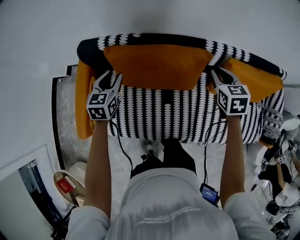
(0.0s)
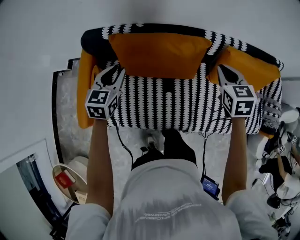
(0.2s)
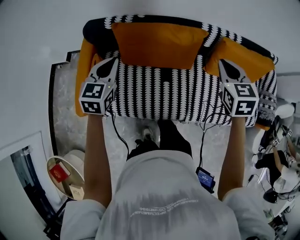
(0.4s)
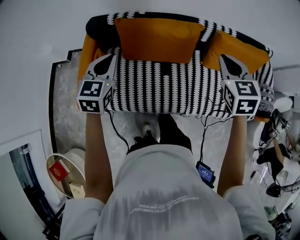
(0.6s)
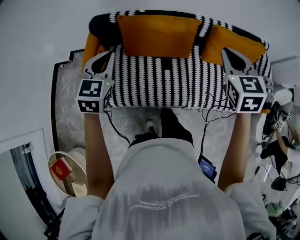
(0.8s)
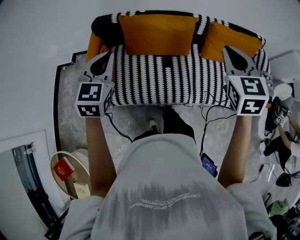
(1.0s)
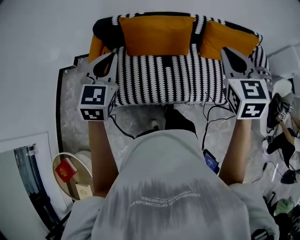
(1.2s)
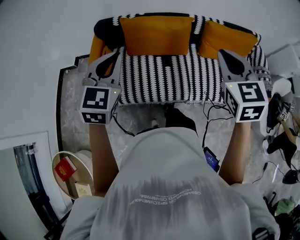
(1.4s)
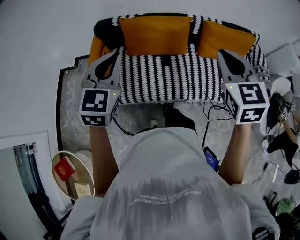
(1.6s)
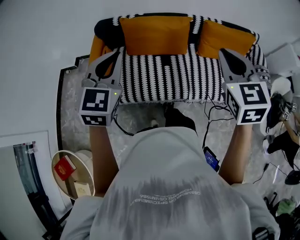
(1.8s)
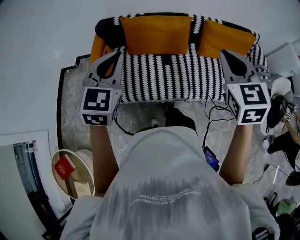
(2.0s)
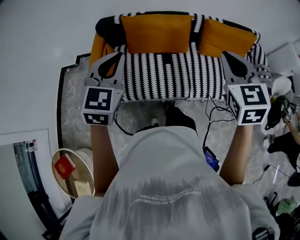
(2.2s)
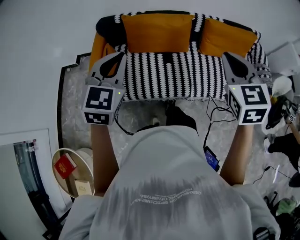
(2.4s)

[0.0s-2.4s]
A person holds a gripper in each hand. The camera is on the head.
0.0s to 1.2s: Both grippers travel together backward and upward, approximately 40 cm. The right gripper turns by approximately 30 degrees. The left gripper turns by some 30 degrees, and closes its fingers.
1.2s to 2.4s: Both grippers travel together backward, roughly 5 cm.

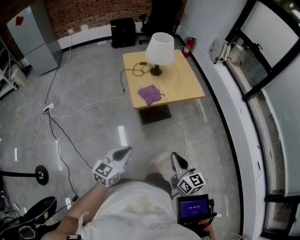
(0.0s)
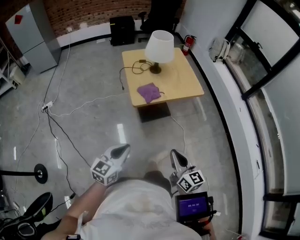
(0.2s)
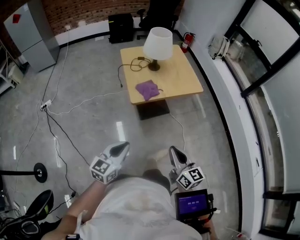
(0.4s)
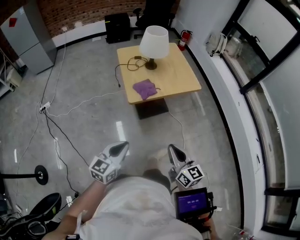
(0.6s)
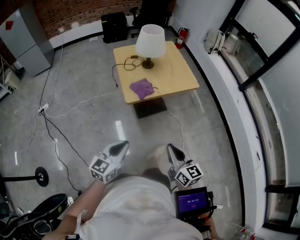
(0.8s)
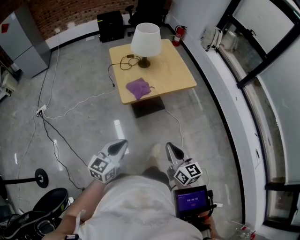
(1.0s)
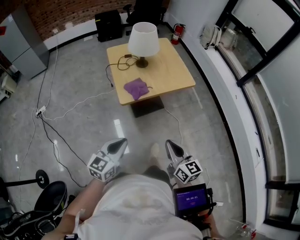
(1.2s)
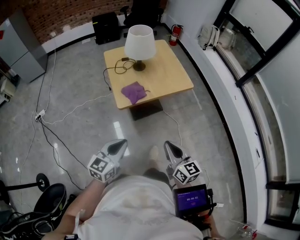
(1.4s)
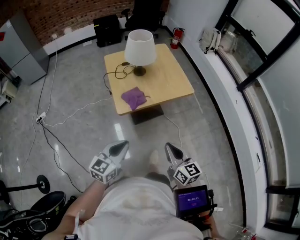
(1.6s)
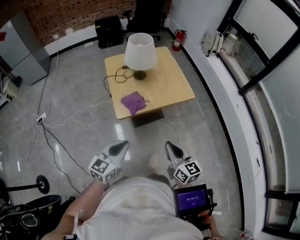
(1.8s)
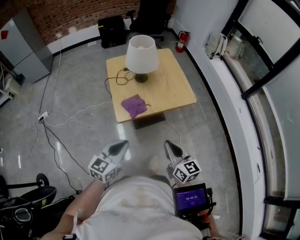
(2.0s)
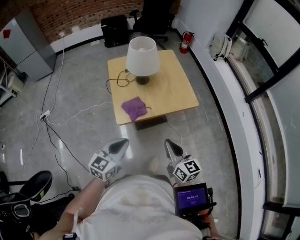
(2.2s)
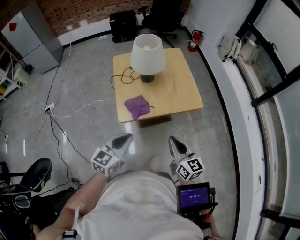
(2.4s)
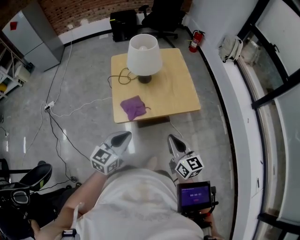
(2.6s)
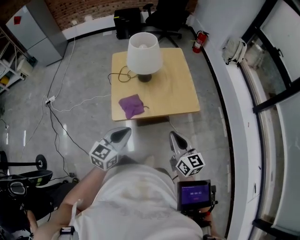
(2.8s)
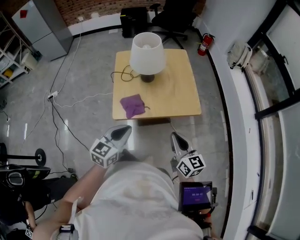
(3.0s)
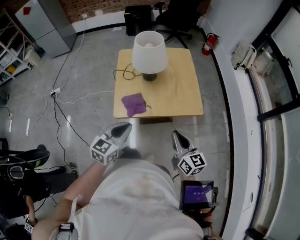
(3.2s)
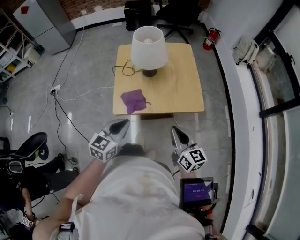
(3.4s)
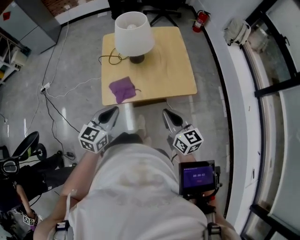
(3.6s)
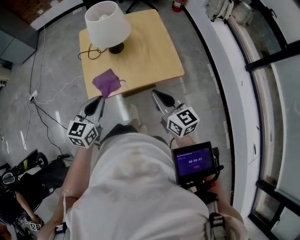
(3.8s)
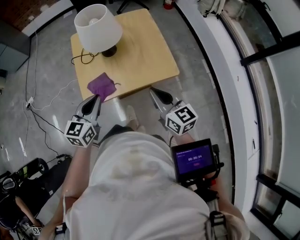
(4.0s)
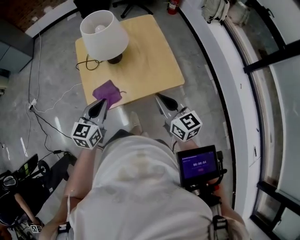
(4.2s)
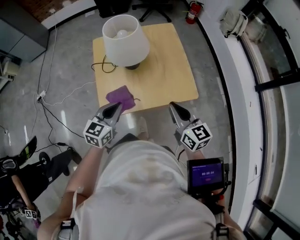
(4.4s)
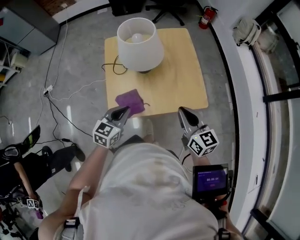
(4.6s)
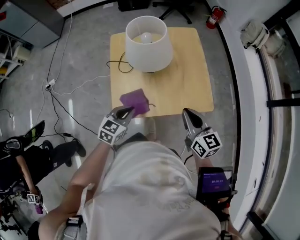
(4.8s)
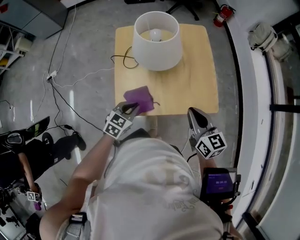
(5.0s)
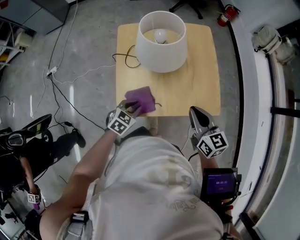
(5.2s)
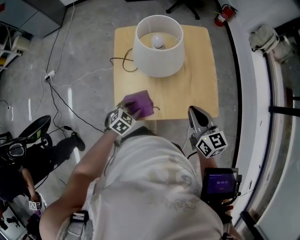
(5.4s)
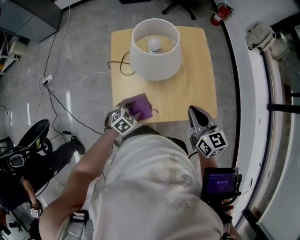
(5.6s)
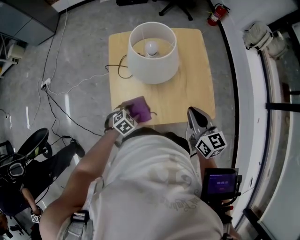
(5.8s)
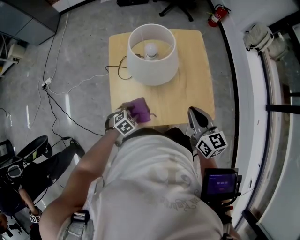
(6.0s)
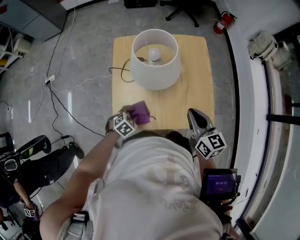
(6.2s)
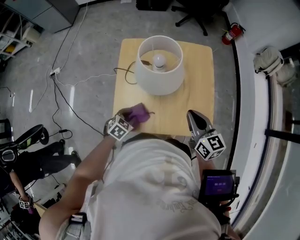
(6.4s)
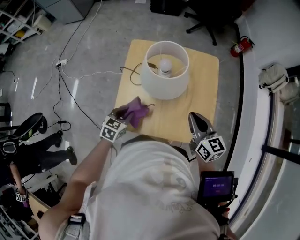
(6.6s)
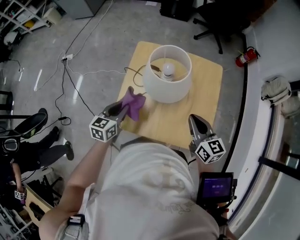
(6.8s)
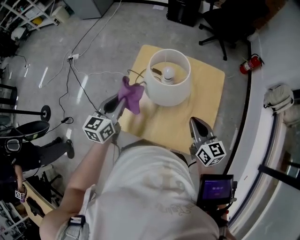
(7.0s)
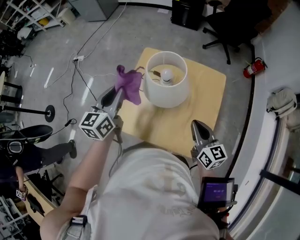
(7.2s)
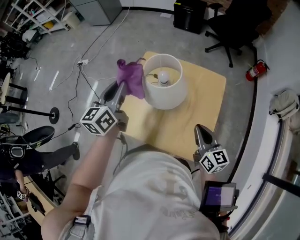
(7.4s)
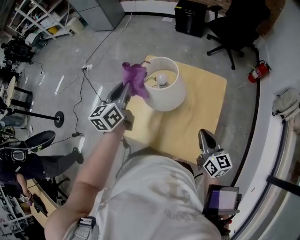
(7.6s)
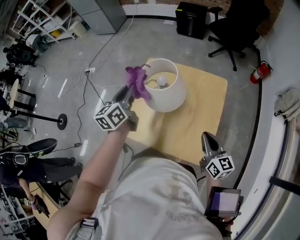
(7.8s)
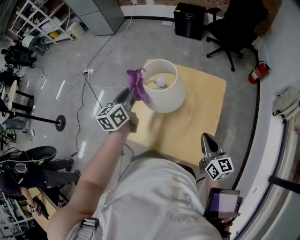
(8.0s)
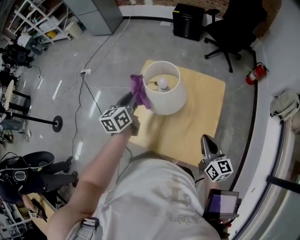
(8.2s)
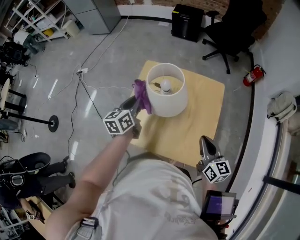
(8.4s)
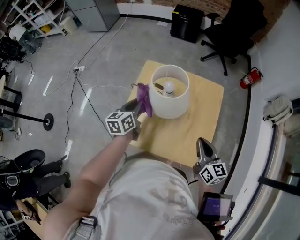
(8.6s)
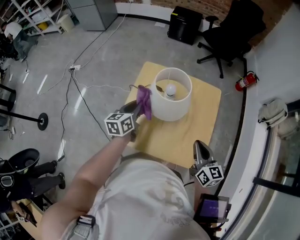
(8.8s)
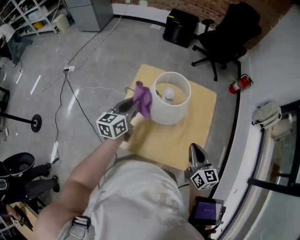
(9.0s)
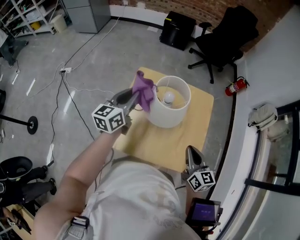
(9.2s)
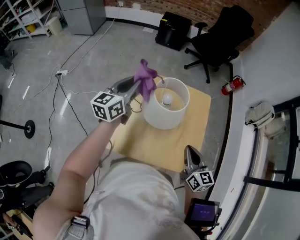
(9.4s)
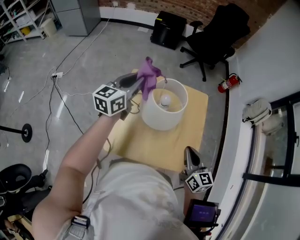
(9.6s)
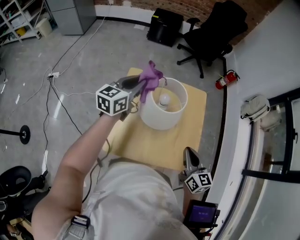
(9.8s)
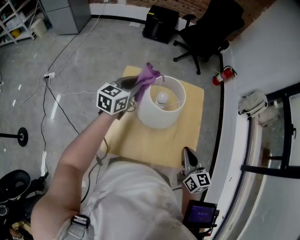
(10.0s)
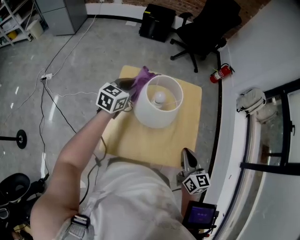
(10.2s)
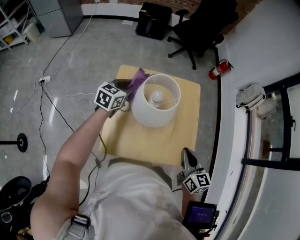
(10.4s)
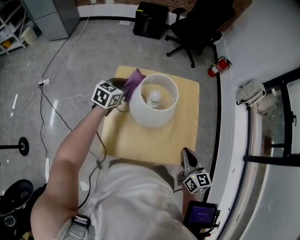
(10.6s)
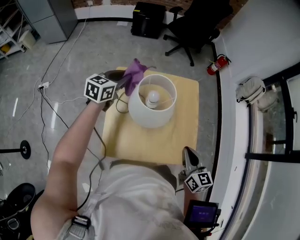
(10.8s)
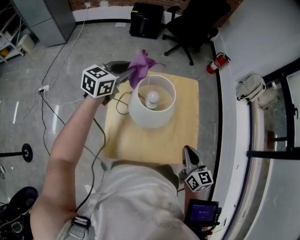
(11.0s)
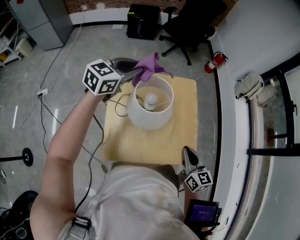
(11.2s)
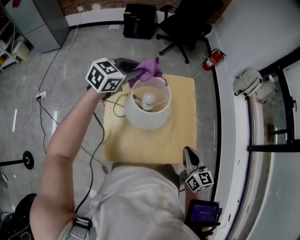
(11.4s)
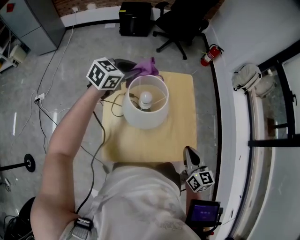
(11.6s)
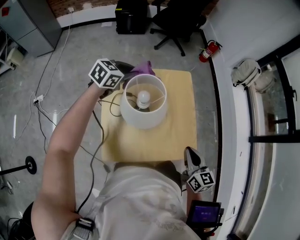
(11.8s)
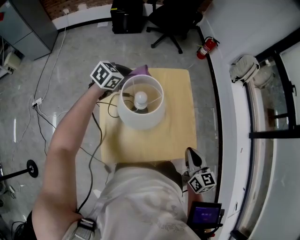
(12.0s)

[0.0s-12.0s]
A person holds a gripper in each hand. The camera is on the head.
0.0s to 1.6s: The left gripper goes some 10 cm forward and to the right. The right gripper is displaced forward by roughly 10 cm.
1.6s to 3.0s: The grippers both shift forward and to the right by some 20 cm.
3.0s to 4.4s: The left gripper heads forward and downward, covering roughly 15 cm; the right gripper shifts about 10 cm forward.
4.4s to 6.0s: The right gripper travels forward by some 10 cm. Meanwhile the left gripper travels downward by roughly 20 cm, points its fingers some 40 degrees further downward, and opens its fingers.
6.0s to 7.6s: The right gripper moves approximately 10 cm, and rotates some 20 degrees; the left gripper goes about 35 cm upward, and tilts its fingers some 50 degrees upward.
7.6s to 9.0s: The right gripper goes about 5 cm to the left, while the left gripper moves downward, roughly 10 cm.
9.0s to 10.4s: The left gripper shifts approximately 10 cm forward, moves roughly 10 cm upward and comes back, and swivels some 30 degrees.
10.4s to 12.0s: The left gripper is displaced forward and to the right by roughly 10 cm, travels upward and back again, approximately 15 cm each way, and swivels roughly 30 degrees.

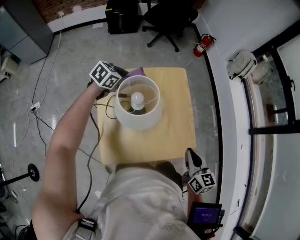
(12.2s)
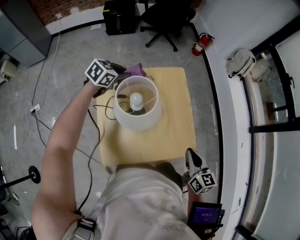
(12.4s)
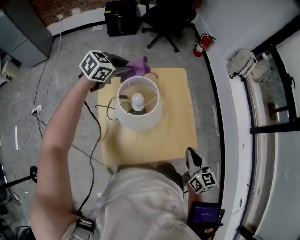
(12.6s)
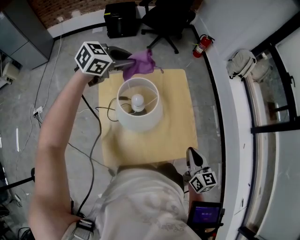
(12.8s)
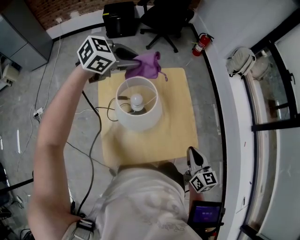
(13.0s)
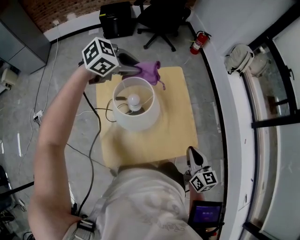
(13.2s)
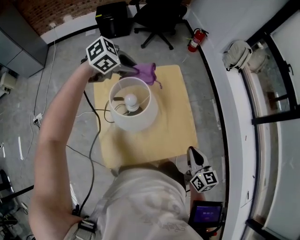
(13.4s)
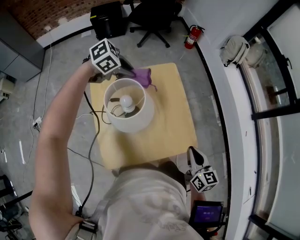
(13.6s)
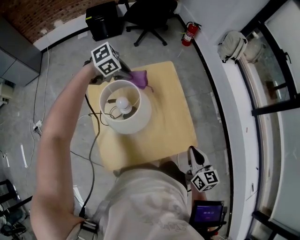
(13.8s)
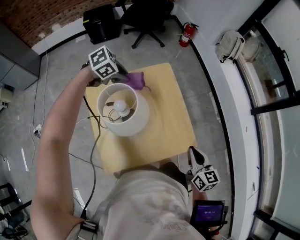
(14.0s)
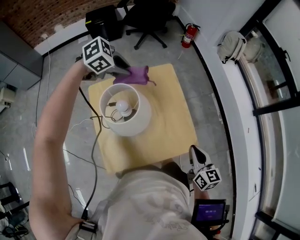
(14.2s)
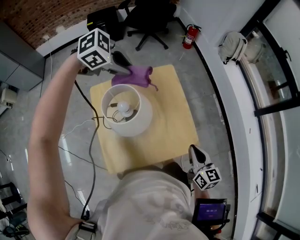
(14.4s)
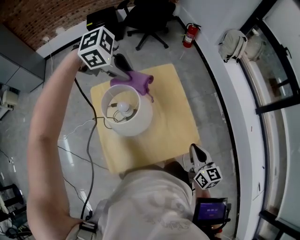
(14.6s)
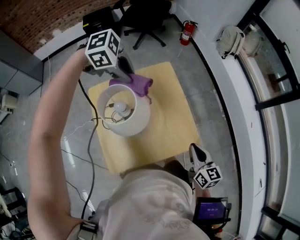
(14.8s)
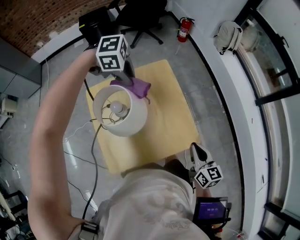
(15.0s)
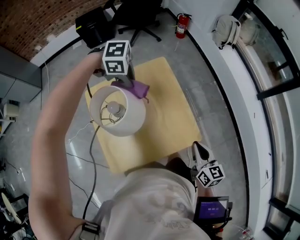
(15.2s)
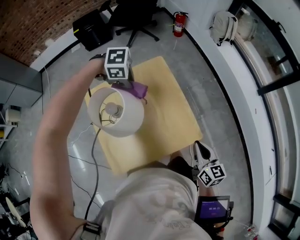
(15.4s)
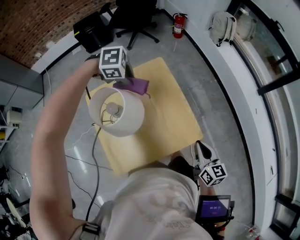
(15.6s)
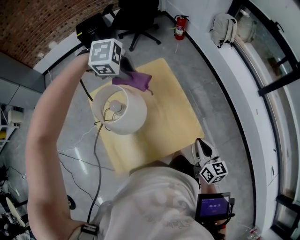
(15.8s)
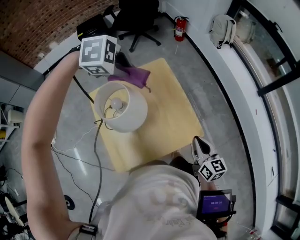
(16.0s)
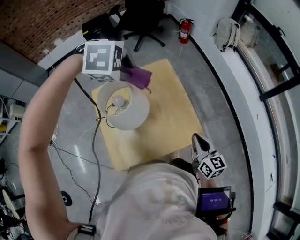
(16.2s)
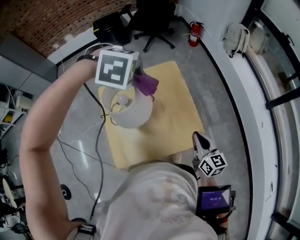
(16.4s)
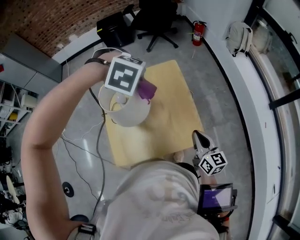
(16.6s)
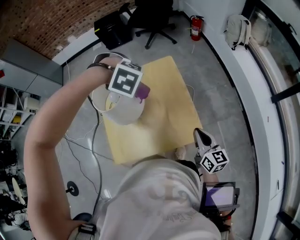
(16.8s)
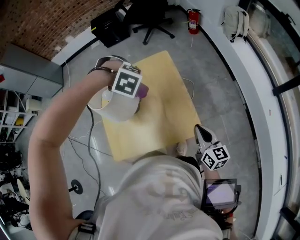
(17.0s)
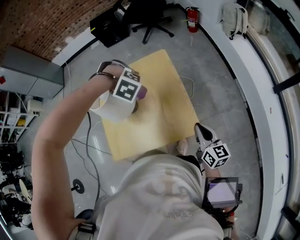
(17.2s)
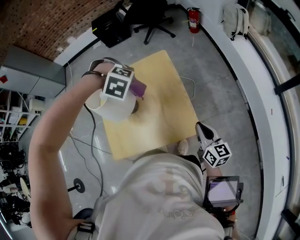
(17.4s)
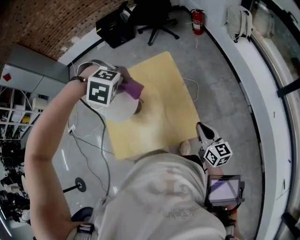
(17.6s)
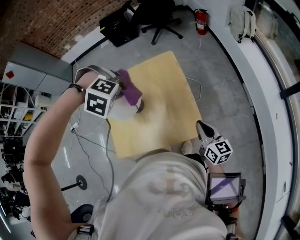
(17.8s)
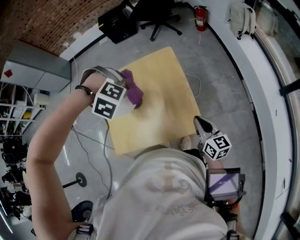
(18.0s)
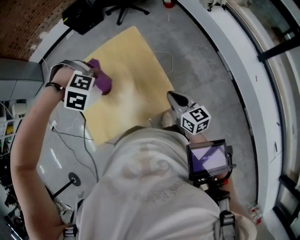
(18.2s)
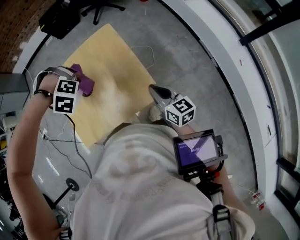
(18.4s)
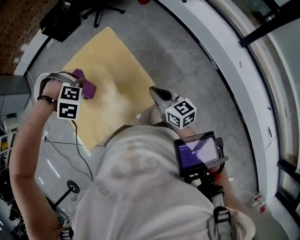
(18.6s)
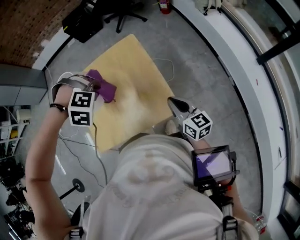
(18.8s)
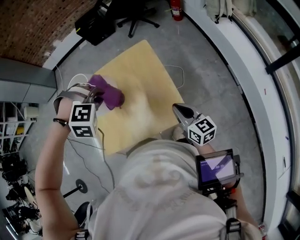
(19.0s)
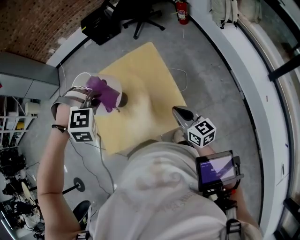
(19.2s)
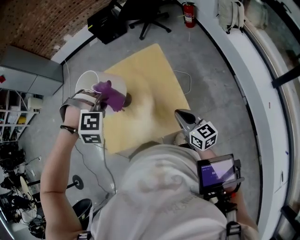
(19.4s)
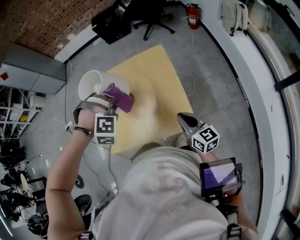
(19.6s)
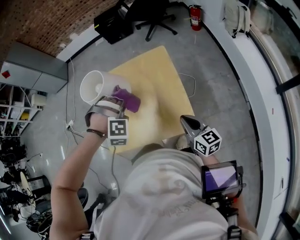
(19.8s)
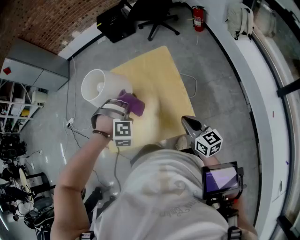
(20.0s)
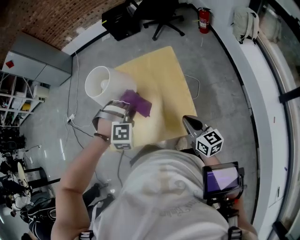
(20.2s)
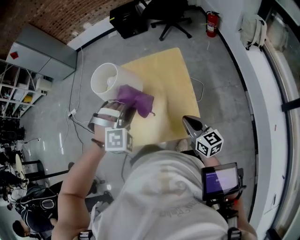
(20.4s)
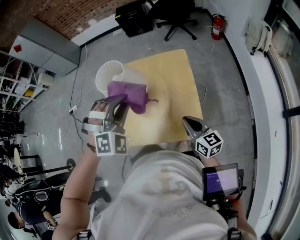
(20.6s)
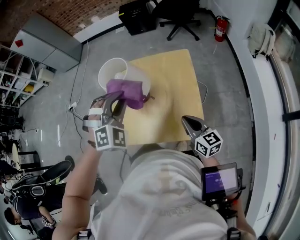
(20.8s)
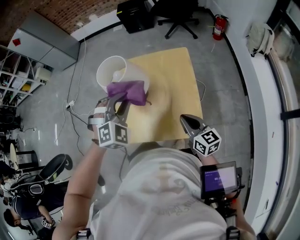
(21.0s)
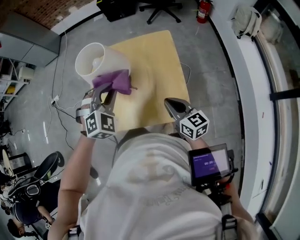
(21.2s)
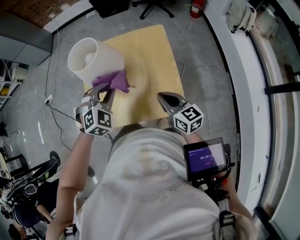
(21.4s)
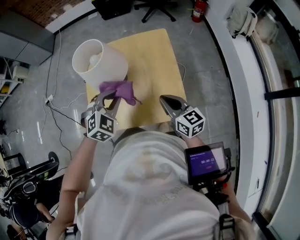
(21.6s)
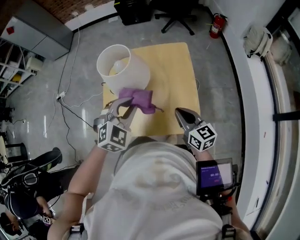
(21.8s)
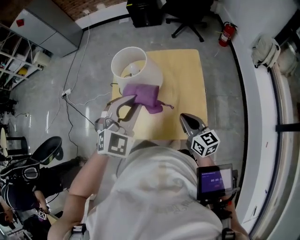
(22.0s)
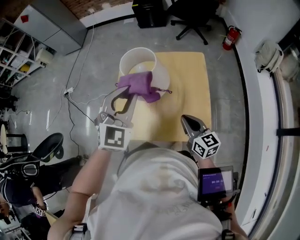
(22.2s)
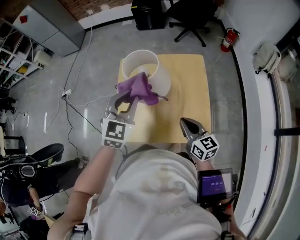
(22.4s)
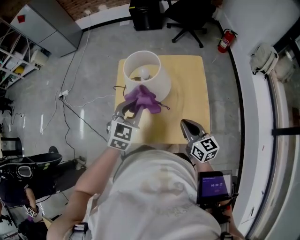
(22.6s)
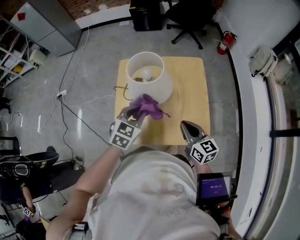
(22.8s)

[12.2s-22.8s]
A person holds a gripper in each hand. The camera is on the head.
12.2s to 13.8s: The left gripper is displaced to the right by approximately 10 cm, moves approximately 20 cm upward and comes back, and changes its angle by some 30 degrees.
13.8s to 15.2s: The left gripper moves about 15 cm upward and comes back, and changes its angle by approximately 40 degrees.
15.2s to 16.8s: The left gripper reaches about 10 cm upward, then returns, and rotates about 40 degrees.
16.8s to 18.2s: The left gripper swings up and down, approximately 10 cm each way, with 2 reversals.
18.2s to 19.8s: The left gripper changes place by about 5 cm, and turns by about 30 degrees.
19.8s to 21.2s: The left gripper goes upward and returns, some 10 cm each way, and rolls counterclockwise, seen from behind, by some 50 degrees. The right gripper shifts about 10 cm to the left and forward.
21.2s to 22.8s: The right gripper goes about 5 cm to the left; the left gripper moves up and down over some 15 cm, changing direction 2 times, and rotates around the line of its fingers by approximately 40 degrees, counterclockwise from behind.
